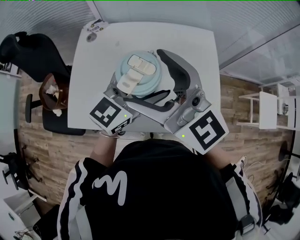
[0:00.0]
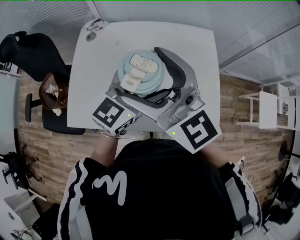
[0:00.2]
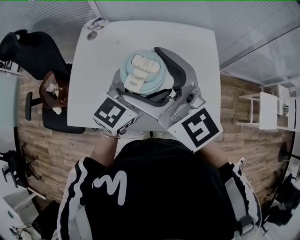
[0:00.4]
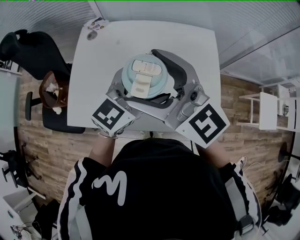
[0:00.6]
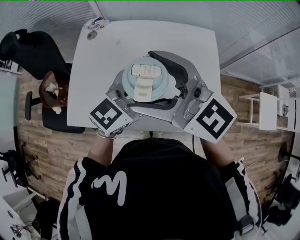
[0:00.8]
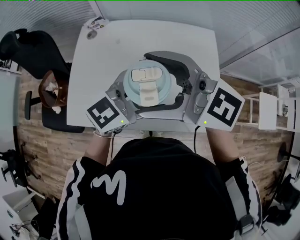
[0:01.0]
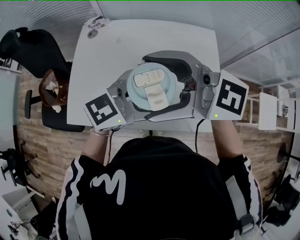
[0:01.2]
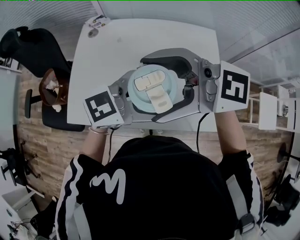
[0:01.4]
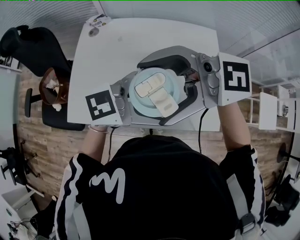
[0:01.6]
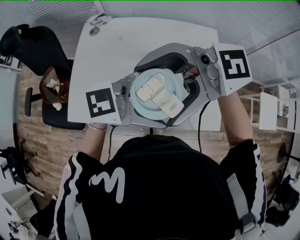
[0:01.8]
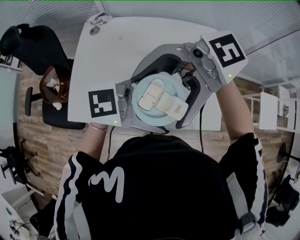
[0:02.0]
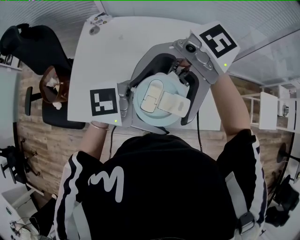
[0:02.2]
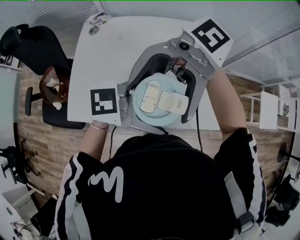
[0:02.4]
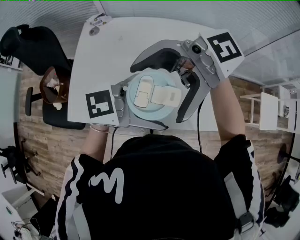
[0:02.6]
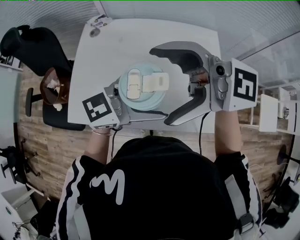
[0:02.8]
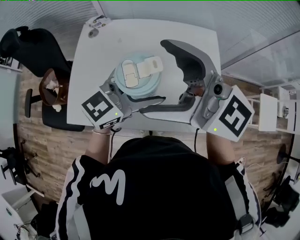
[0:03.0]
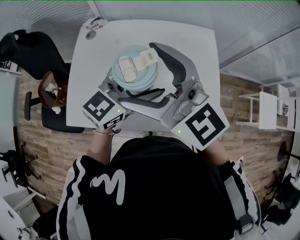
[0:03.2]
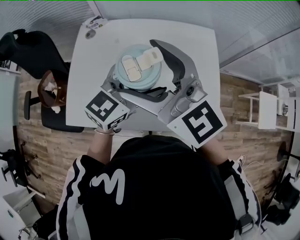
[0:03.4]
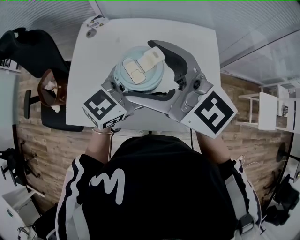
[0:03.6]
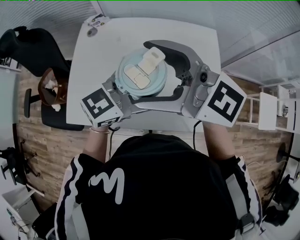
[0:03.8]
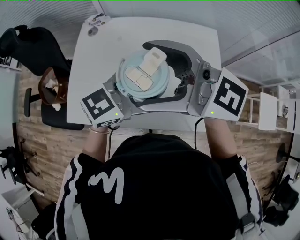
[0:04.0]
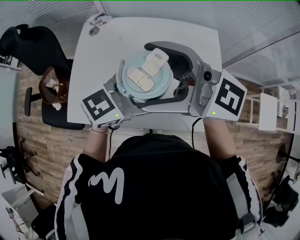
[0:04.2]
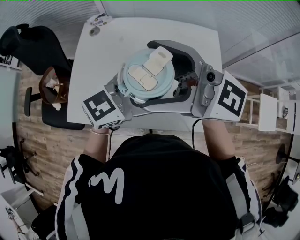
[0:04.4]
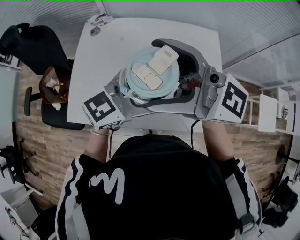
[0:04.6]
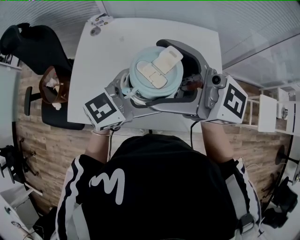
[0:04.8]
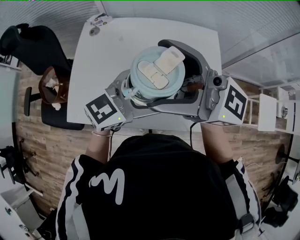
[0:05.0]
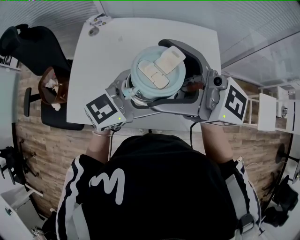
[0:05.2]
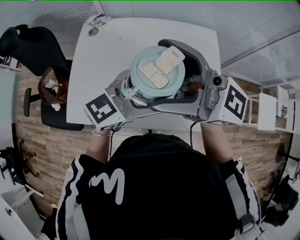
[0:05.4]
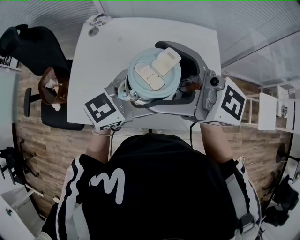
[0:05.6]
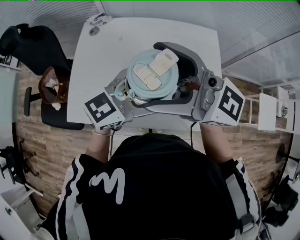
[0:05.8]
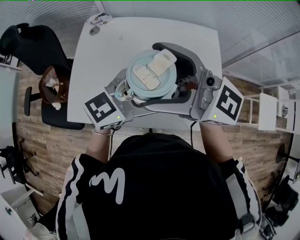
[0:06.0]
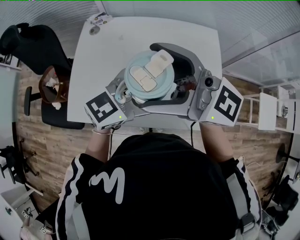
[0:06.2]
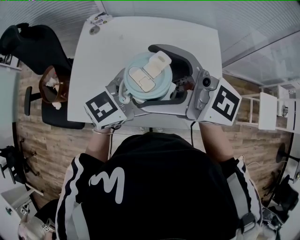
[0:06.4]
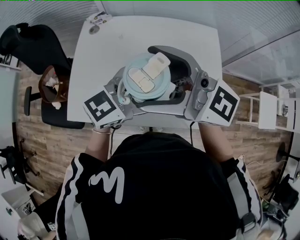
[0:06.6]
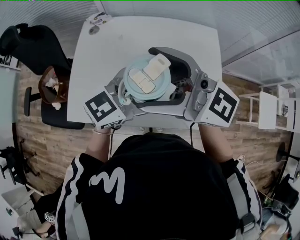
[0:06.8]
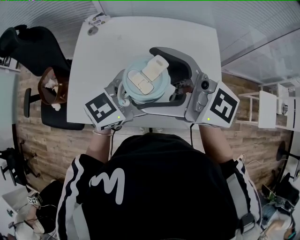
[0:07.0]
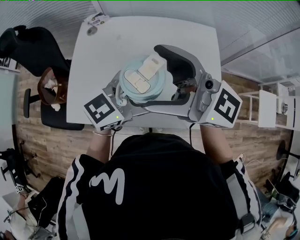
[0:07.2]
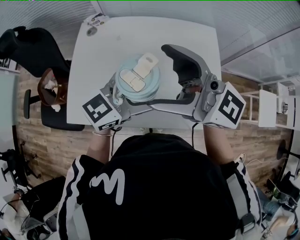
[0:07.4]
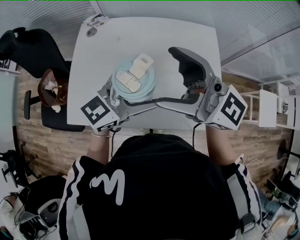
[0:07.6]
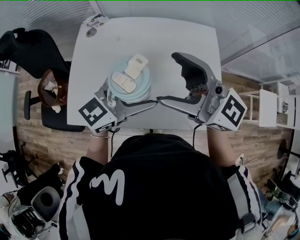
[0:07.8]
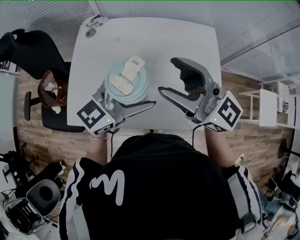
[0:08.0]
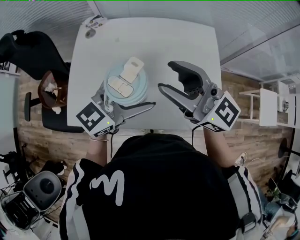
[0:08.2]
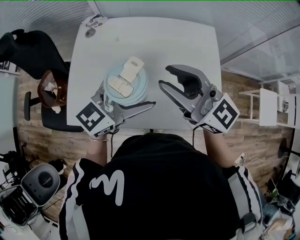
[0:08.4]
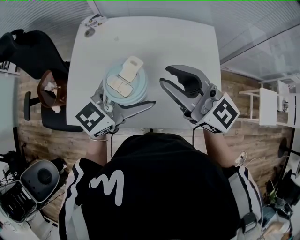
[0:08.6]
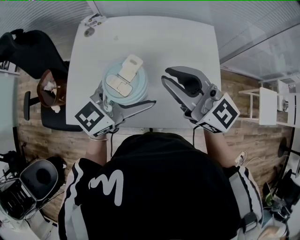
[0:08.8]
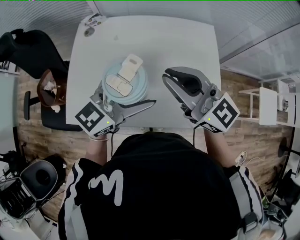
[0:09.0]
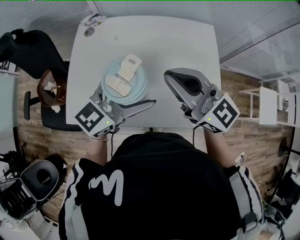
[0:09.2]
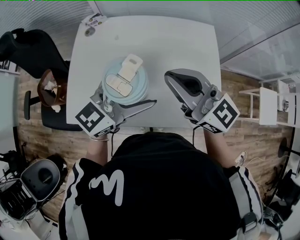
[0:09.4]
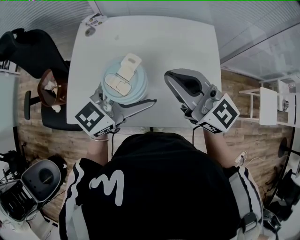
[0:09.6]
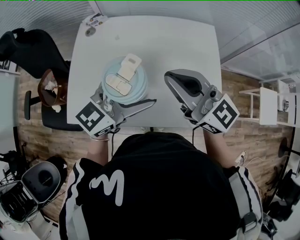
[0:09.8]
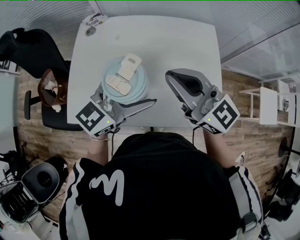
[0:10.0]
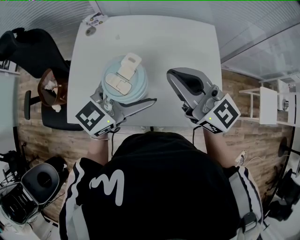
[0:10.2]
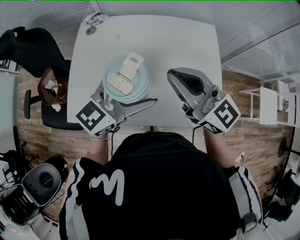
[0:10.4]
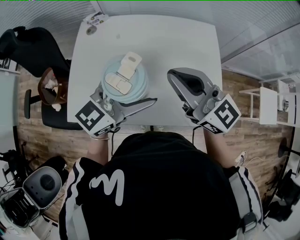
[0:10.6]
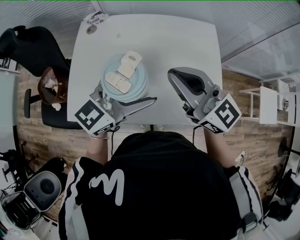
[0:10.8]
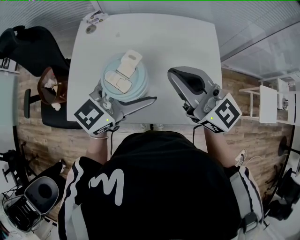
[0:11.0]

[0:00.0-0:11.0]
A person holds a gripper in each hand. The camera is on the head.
0:00.0 to 0:01.6: The right gripper moves approximately 5 cm, and changes its angle by approximately 60 degrees. The left gripper ends up some 10 cm from where it was, and changes its angle by approximately 30 degrees.
0:01.6 to 0:03.2: The right gripper changes place by some 5 cm, and swivels approximately 50 degrees. The left gripper moves about 10 cm, and rotates some 30 degrees.
0:03.2 to 0:04.8: The right gripper turns by about 30 degrees.
0:04.8 to 0:06.2: The grippers move only a little.
0:06.2 to 0:07.8: The right gripper changes place by approximately 5 cm.
0:07.8 to 0:09.4: The right gripper closes up.
0:09.4 to 0:11.0: Neither gripper changes place.

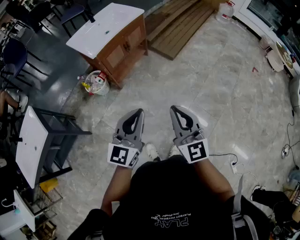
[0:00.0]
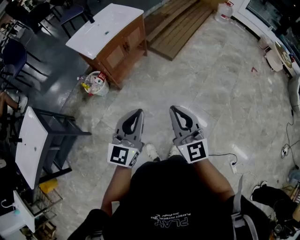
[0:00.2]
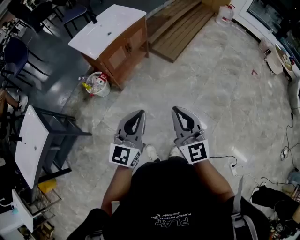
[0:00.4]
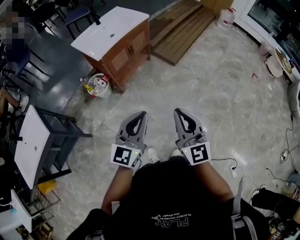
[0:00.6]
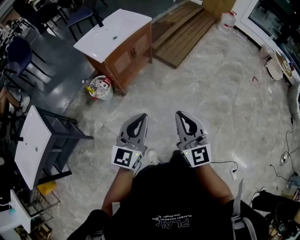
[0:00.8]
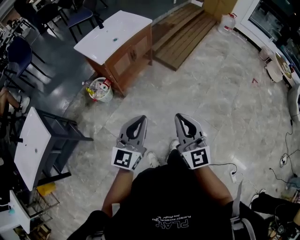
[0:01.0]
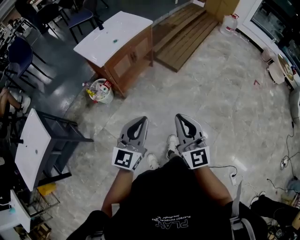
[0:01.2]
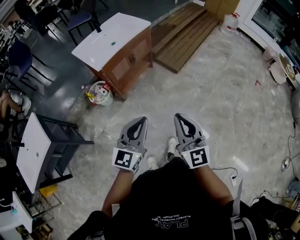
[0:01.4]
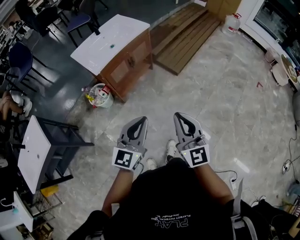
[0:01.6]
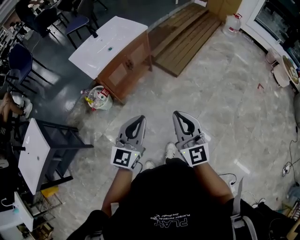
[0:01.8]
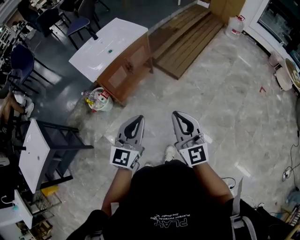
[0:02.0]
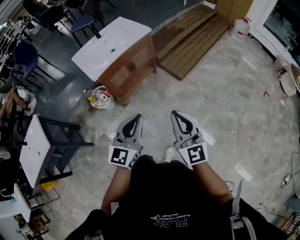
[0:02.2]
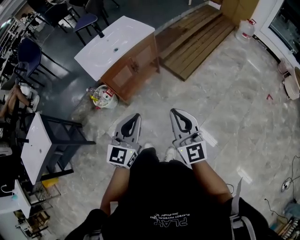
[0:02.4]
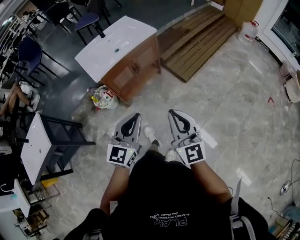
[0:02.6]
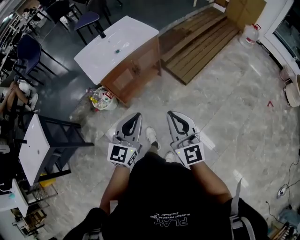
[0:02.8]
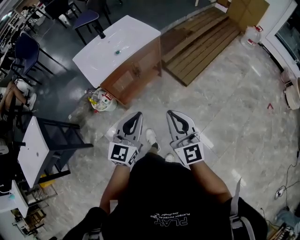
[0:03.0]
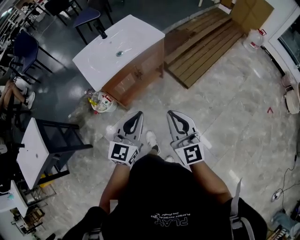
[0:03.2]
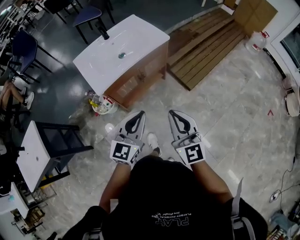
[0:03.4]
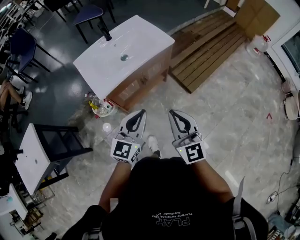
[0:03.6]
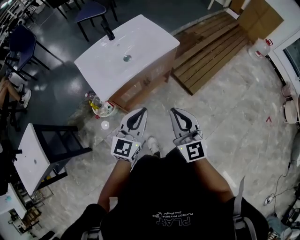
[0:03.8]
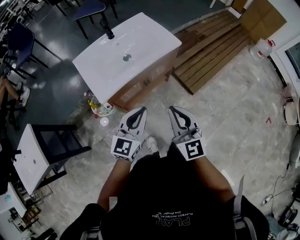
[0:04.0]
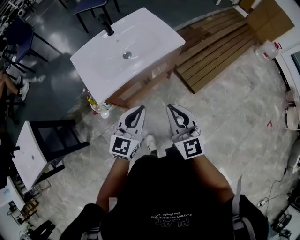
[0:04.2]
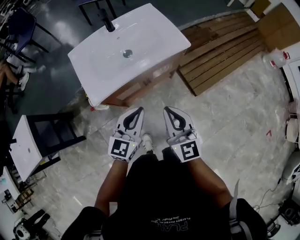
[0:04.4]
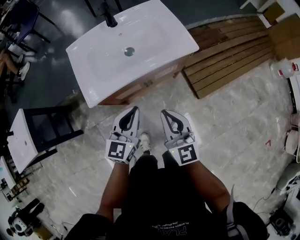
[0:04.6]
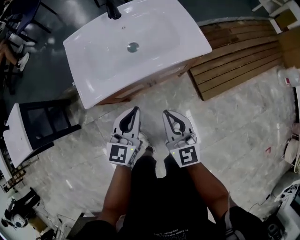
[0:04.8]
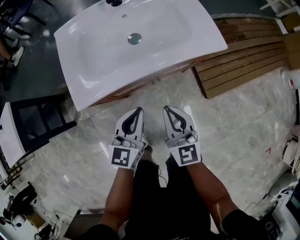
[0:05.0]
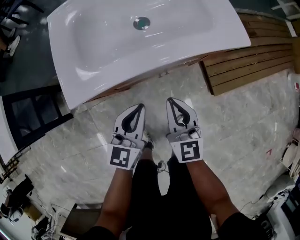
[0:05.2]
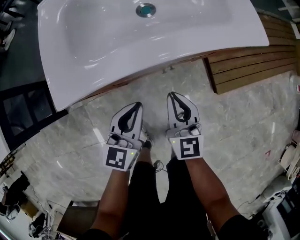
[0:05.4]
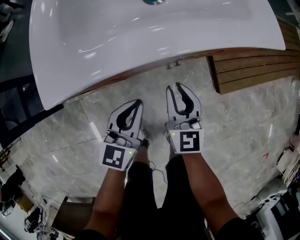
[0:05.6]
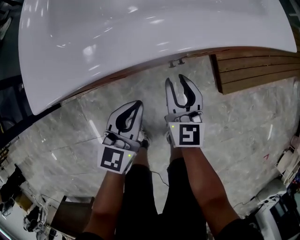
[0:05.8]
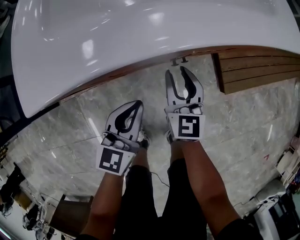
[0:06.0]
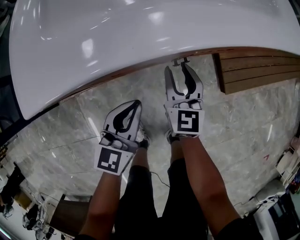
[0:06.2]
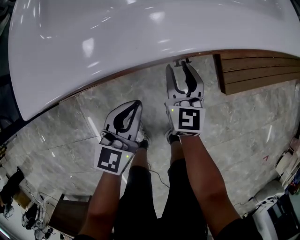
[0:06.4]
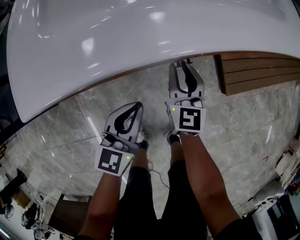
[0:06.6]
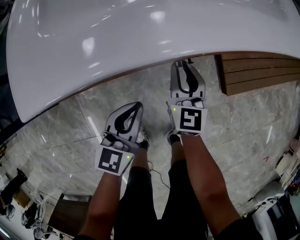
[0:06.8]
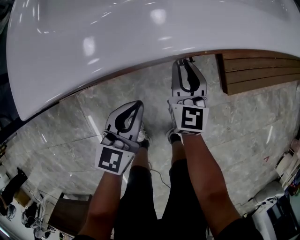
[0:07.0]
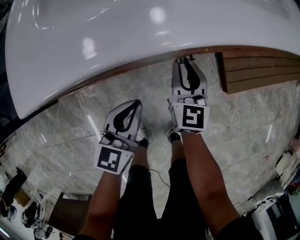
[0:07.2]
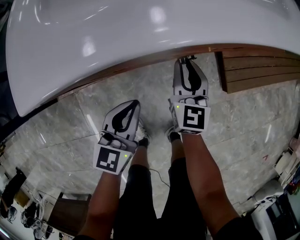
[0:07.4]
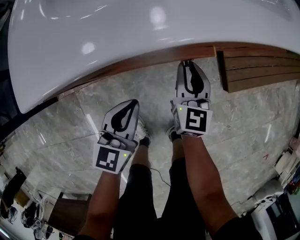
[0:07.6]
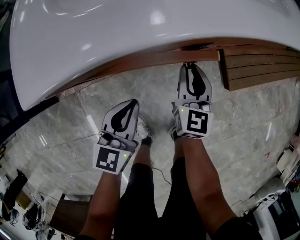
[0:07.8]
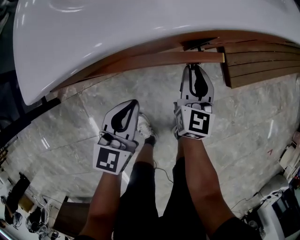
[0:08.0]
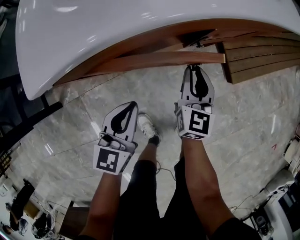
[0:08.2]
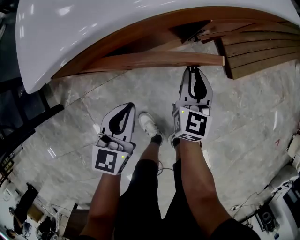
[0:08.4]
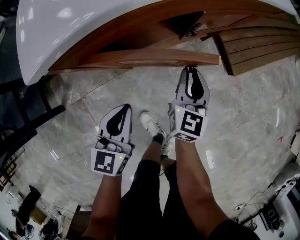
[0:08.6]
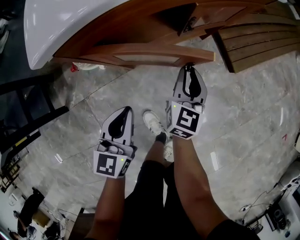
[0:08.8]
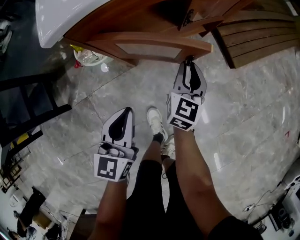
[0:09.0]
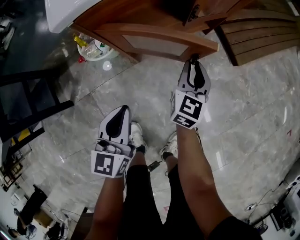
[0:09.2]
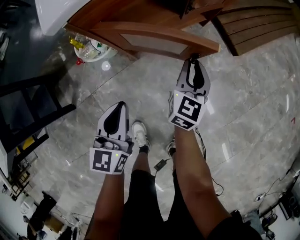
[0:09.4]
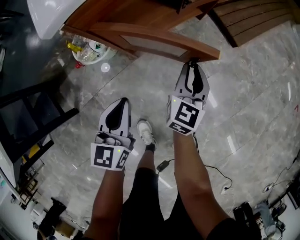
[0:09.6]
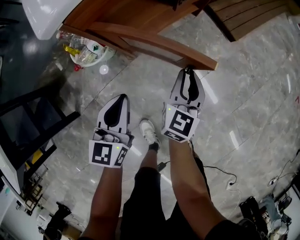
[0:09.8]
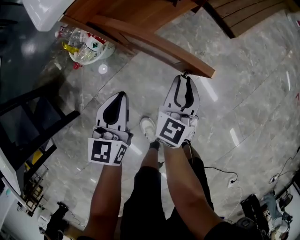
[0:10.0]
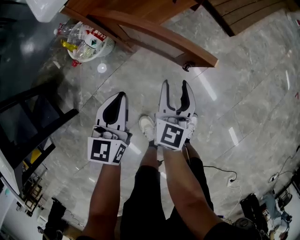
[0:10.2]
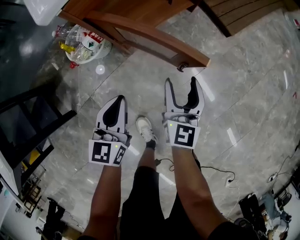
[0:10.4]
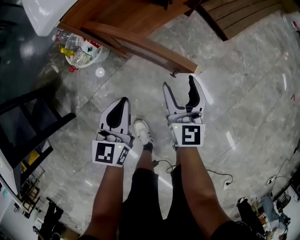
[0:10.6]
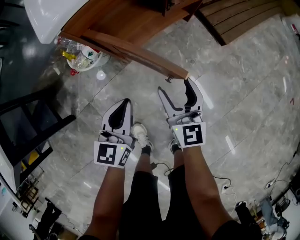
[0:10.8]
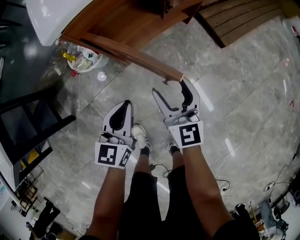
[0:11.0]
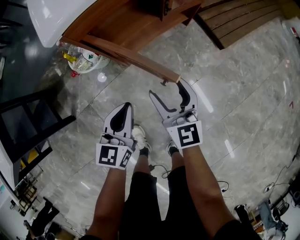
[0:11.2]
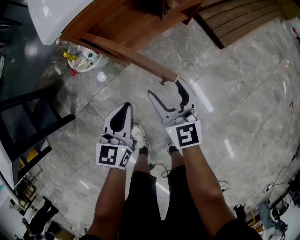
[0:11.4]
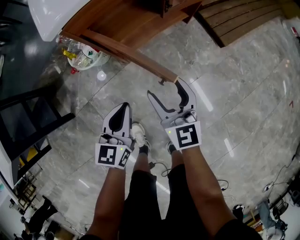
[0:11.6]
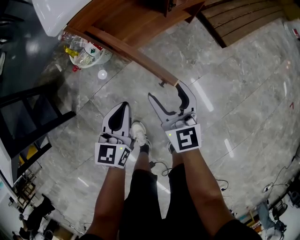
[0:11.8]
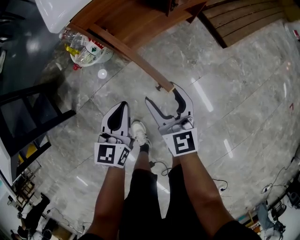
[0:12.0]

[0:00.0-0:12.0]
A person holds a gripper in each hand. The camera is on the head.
0:00.0 to 0:01.6: The two grippers go about 10 cm forward.
0:01.6 to 0:03.0: Both grippers travel together forward, about 20 cm.
0:03.0 to 0:04.4: Both grippers travel together forward, about 25 cm.
0:04.4 to 0:06.0: The left gripper heads downward, covering approximately 30 cm, and changes its angle by approximately 20 degrees; the right gripper goes about 40 cm downward and forward, and opens up.
0:06.0 to 0:07.6: The grippers stay close to where they were, moving slightly.
0:07.6 to 0:09.0: Both grippers travel together backward, roughly 15 cm. The right gripper changes its angle by roughly 20 degrees.
0:09.0 to 0:10.4: The right gripper shifts approximately 15 cm backward, and opens its fingers. The left gripper travels to the left by approximately 5 cm.
0:10.4 to 0:12.0: The right gripper shifts about 5 cm upward, and changes its angle by roughly 30 degrees.

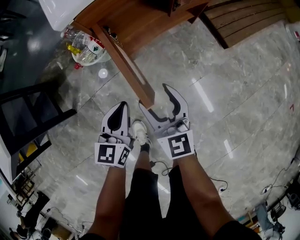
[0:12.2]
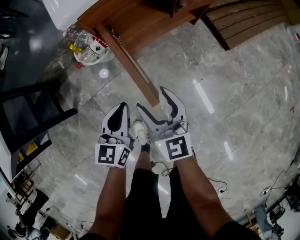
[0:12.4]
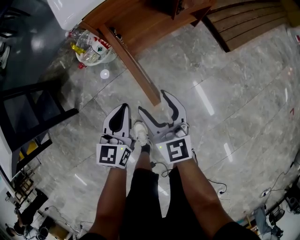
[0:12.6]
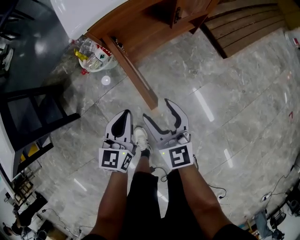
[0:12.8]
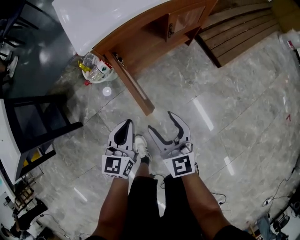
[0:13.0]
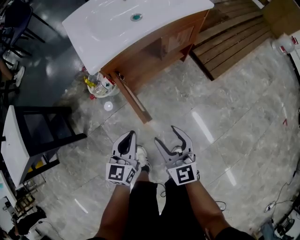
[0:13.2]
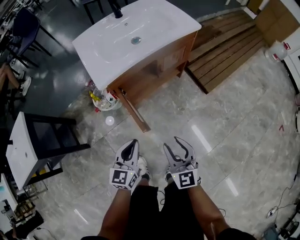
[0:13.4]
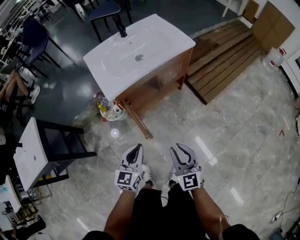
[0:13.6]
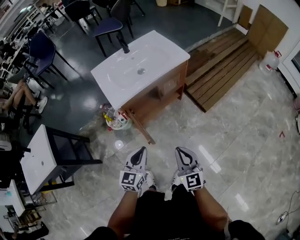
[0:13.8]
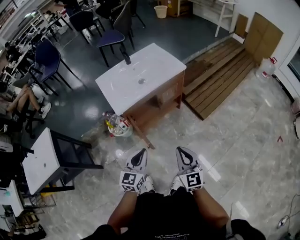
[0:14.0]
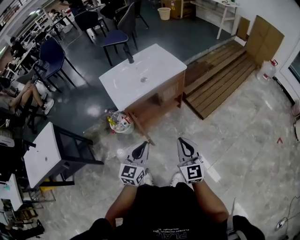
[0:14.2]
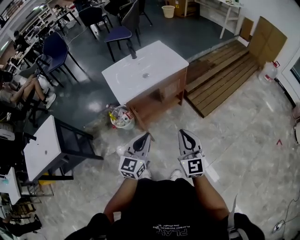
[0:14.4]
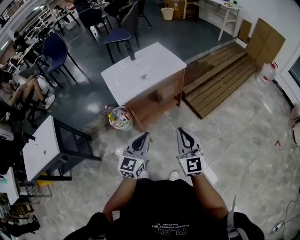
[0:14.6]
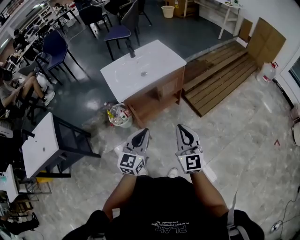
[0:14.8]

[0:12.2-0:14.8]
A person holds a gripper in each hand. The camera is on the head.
0:12.2 to 0:13.4: The left gripper goes some 15 cm upward; the right gripper goes about 20 cm upward, backward and to the right, and closes.
0:13.4 to 0:14.8: The grippers both shift upward by some 25 cm. The right gripper closes.
